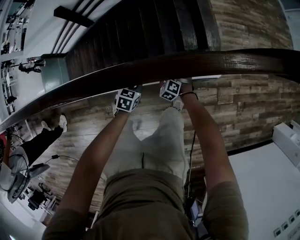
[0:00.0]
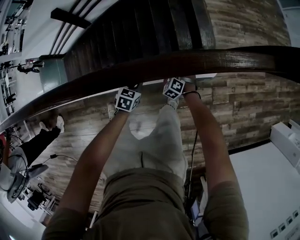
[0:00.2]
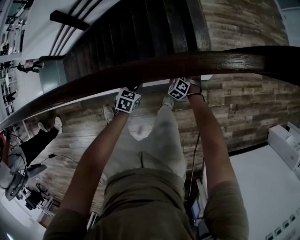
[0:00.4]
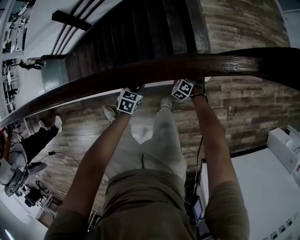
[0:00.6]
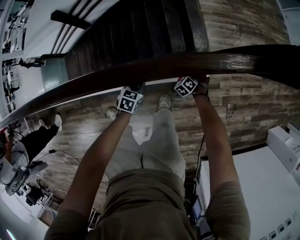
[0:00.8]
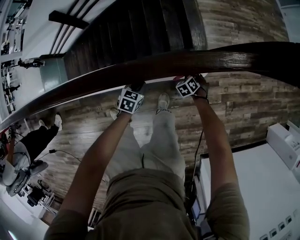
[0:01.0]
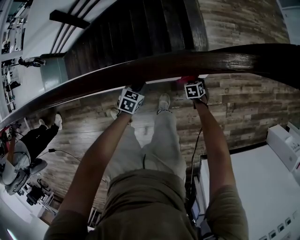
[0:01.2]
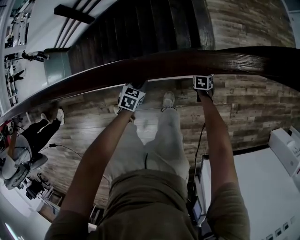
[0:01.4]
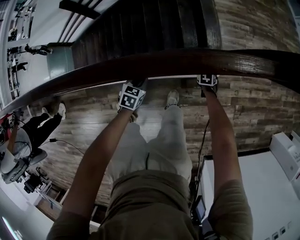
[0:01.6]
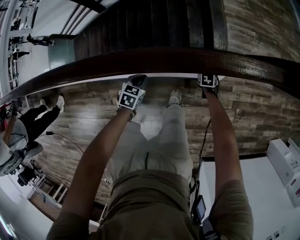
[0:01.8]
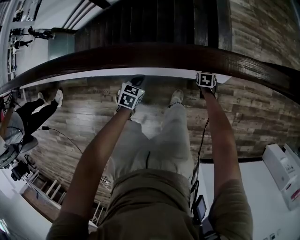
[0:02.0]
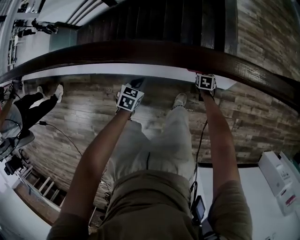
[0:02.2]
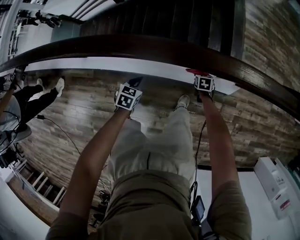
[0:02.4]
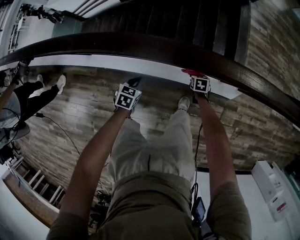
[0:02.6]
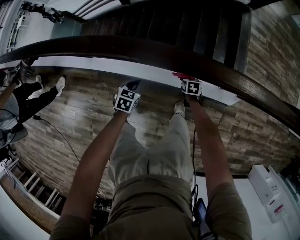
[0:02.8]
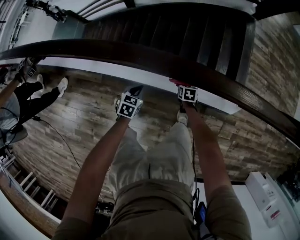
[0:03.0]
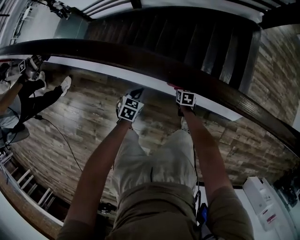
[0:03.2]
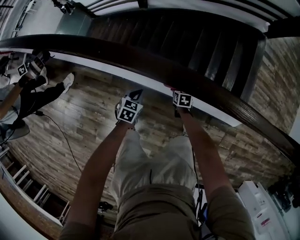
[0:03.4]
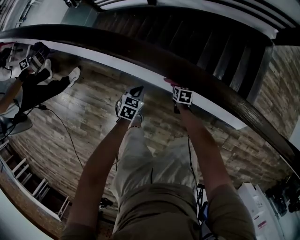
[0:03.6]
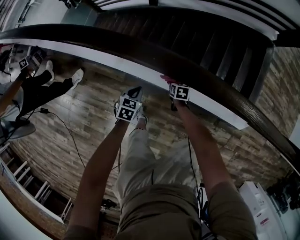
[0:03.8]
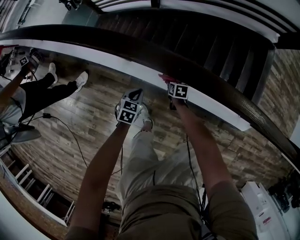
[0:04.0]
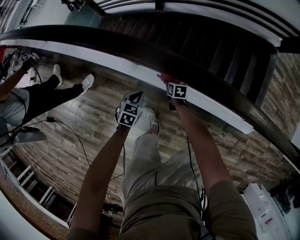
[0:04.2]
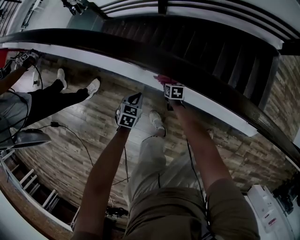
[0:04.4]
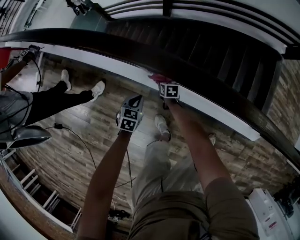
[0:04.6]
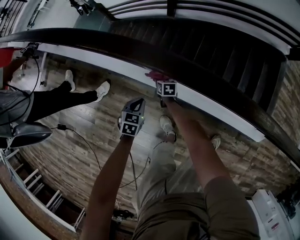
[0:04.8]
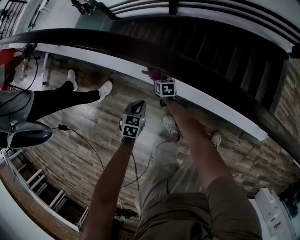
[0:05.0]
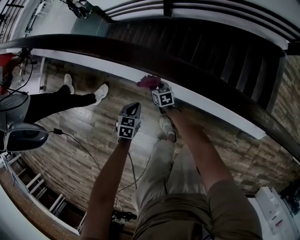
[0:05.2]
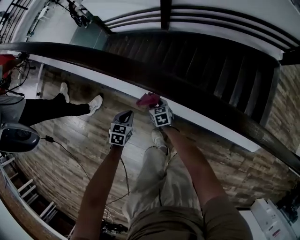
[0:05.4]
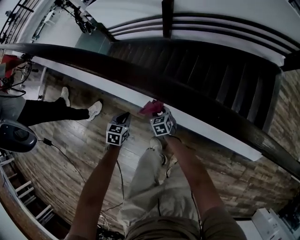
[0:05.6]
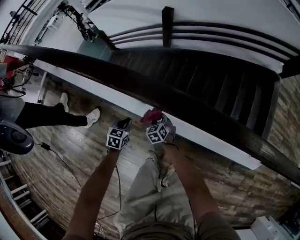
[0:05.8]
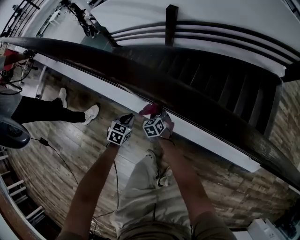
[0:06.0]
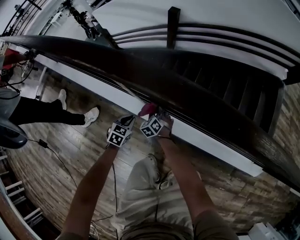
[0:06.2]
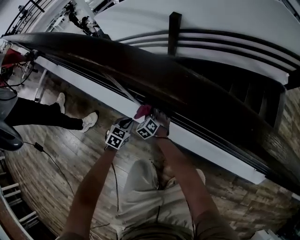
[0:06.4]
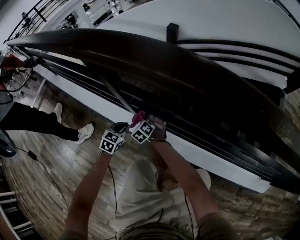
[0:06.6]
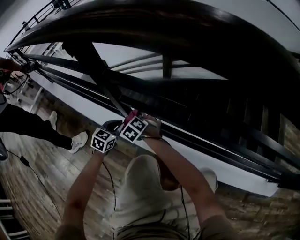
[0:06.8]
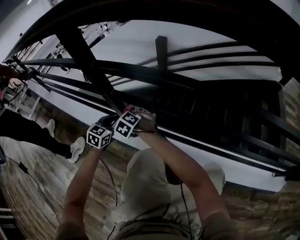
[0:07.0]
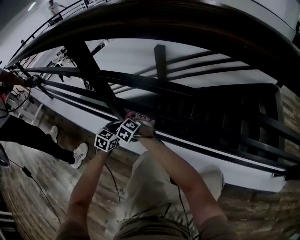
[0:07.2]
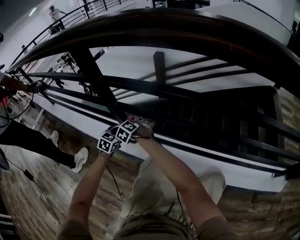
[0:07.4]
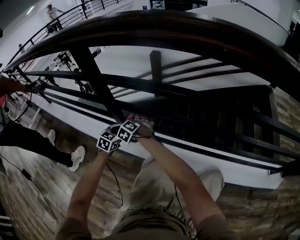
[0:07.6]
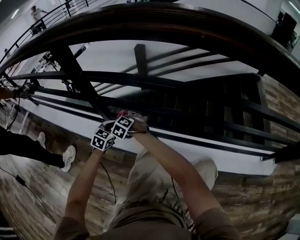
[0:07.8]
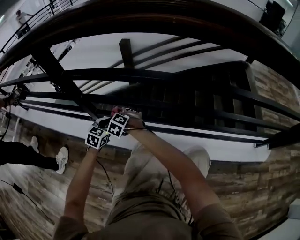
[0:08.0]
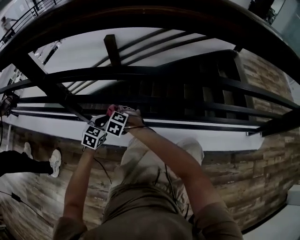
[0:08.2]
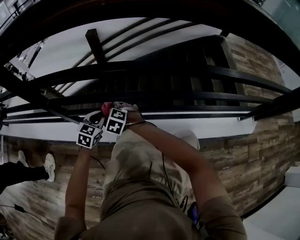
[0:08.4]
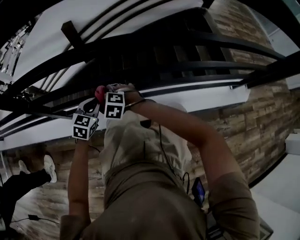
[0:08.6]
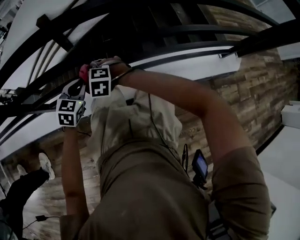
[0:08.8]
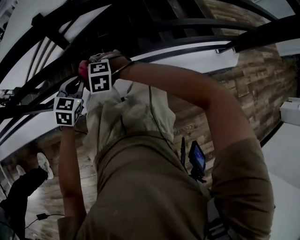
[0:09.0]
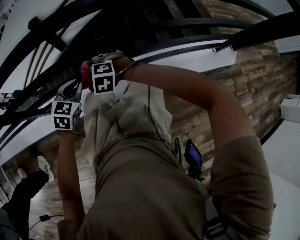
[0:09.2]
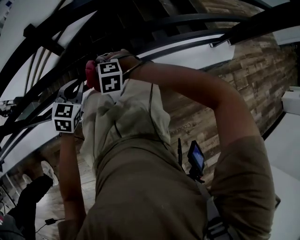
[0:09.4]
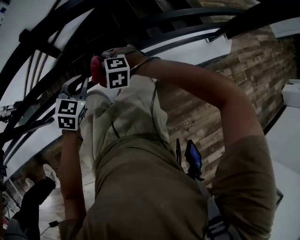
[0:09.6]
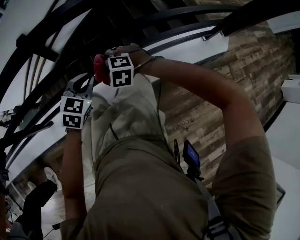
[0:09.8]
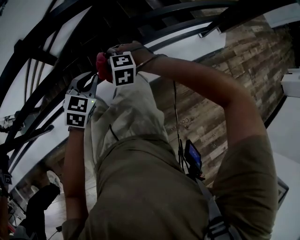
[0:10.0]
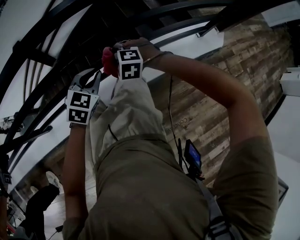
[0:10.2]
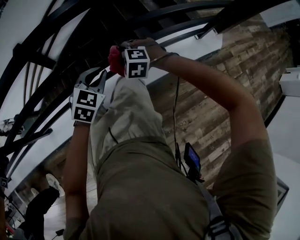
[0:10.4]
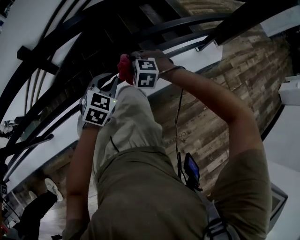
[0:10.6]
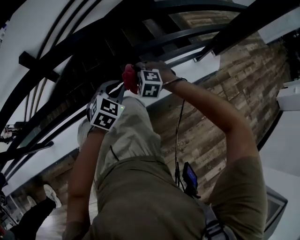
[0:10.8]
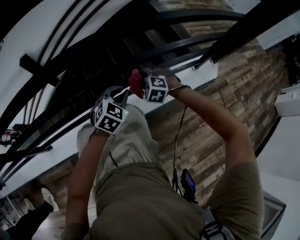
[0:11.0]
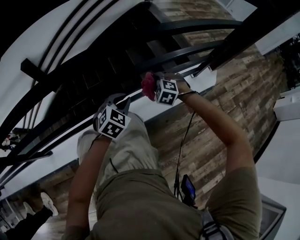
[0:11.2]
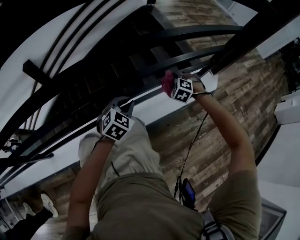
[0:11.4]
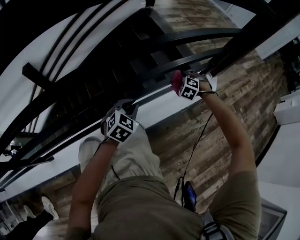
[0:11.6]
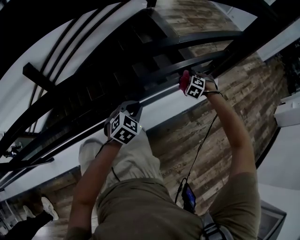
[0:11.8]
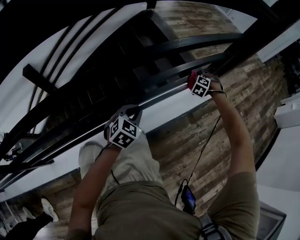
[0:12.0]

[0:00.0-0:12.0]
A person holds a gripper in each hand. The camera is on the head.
0:00.0 to 0:01.6: The left gripper heads to the right, covering roughly 10 cm. Meanwhile the right gripper travels to the right and forward by approximately 30 cm, and rotates around the line of its fingers by roughly 60 degrees, clockwise from behind.
0:01.6 to 0:03.0: The two grippers travel together, about 50 cm. The left gripper turns by some 20 degrees.
0:03.0 to 0:04.4: The two grippers travel together, to the left, about 60 cm.
0:04.4 to 0:06.0: The right gripper moves downward and to the left, approximately 10 cm, and rotates approximately 40 degrees; the left gripper goes some 10 cm downward.
0:06.0 to 0:07.6: The left gripper heads downward, covering about 15 cm, and rotates some 20 degrees. Meanwhile the right gripper heads downward and to the left, covering roughly 15 cm, and turns by some 30 degrees.
0:07.6 to 0:09.0: Both grippers move to the right, about 40 cm. The left gripper swivels about 30 degrees.
0:09.0 to 0:10.4: Both grippers travel together to the right, about 30 cm. The left gripper swivels about 20 degrees.
0:10.4 to 0:12.0: The left gripper changes place by approximately 15 cm, while the right gripper ends up some 50 cm from where it was, and swivels approximately 40 degrees.

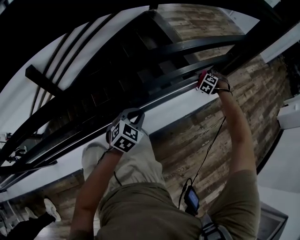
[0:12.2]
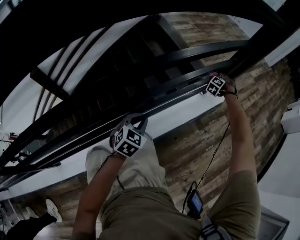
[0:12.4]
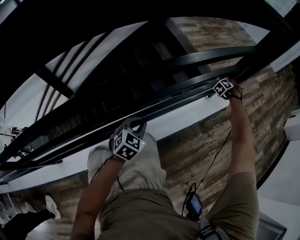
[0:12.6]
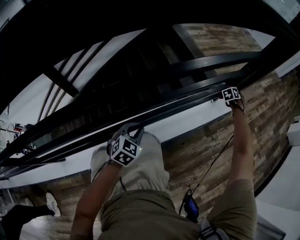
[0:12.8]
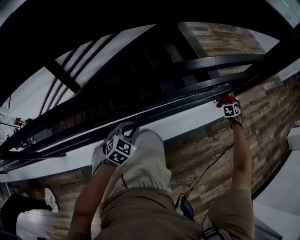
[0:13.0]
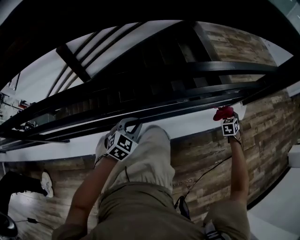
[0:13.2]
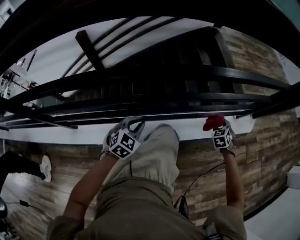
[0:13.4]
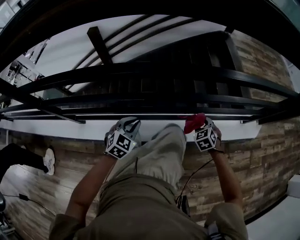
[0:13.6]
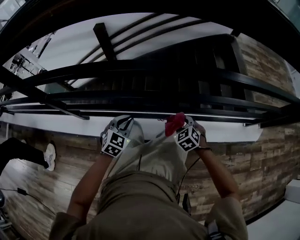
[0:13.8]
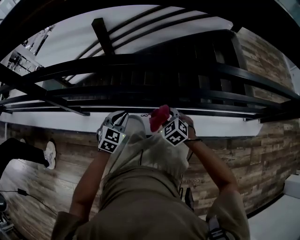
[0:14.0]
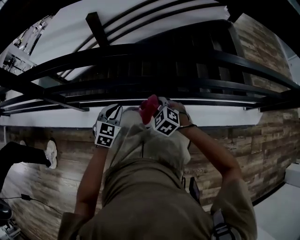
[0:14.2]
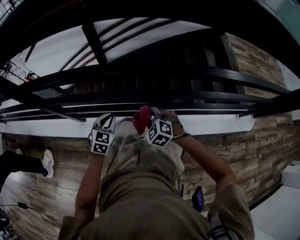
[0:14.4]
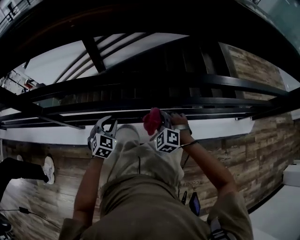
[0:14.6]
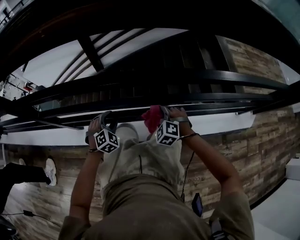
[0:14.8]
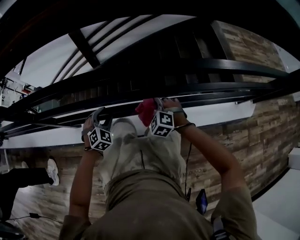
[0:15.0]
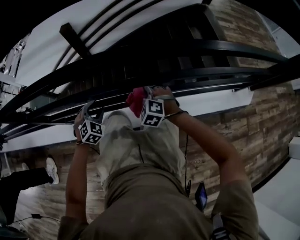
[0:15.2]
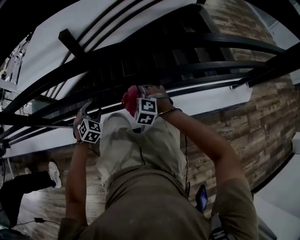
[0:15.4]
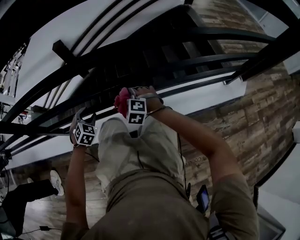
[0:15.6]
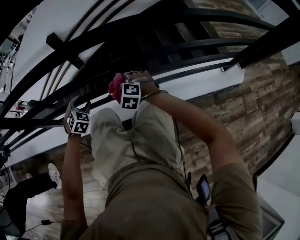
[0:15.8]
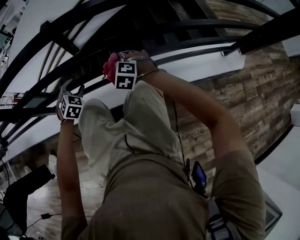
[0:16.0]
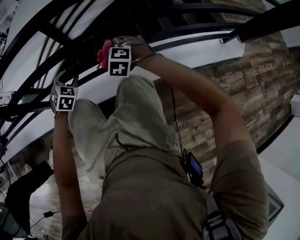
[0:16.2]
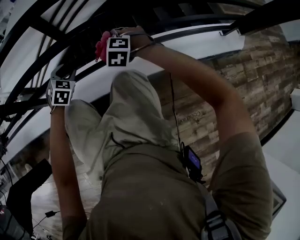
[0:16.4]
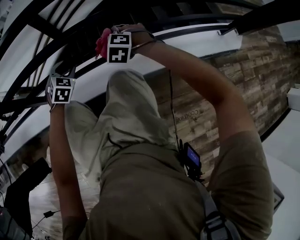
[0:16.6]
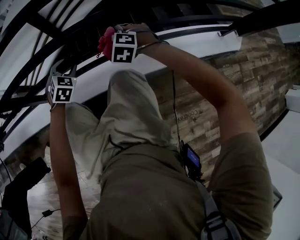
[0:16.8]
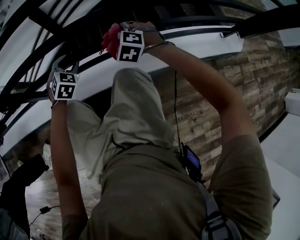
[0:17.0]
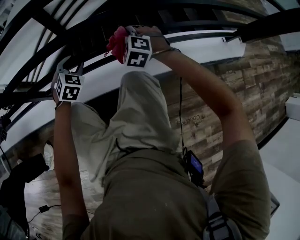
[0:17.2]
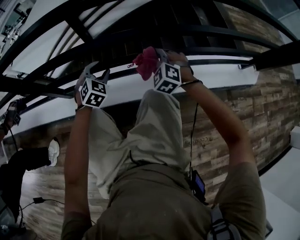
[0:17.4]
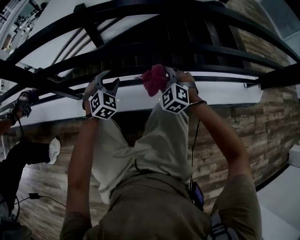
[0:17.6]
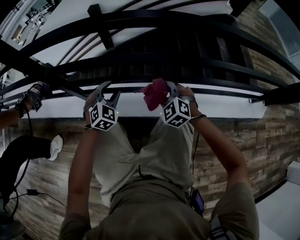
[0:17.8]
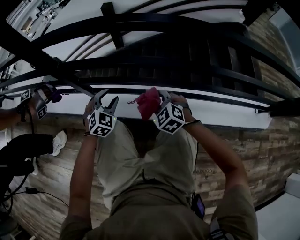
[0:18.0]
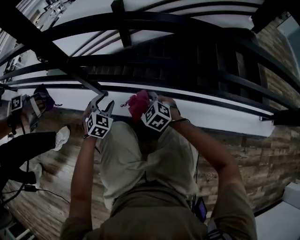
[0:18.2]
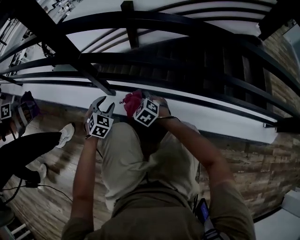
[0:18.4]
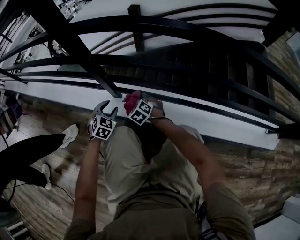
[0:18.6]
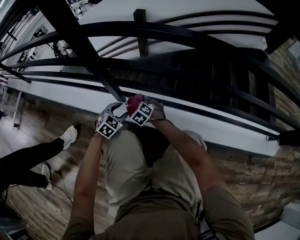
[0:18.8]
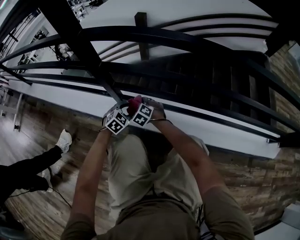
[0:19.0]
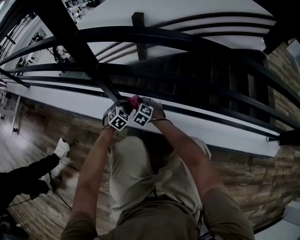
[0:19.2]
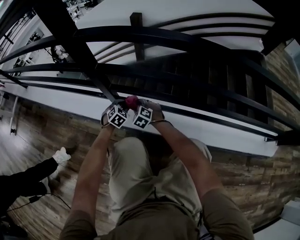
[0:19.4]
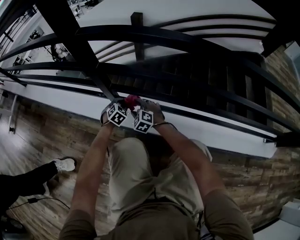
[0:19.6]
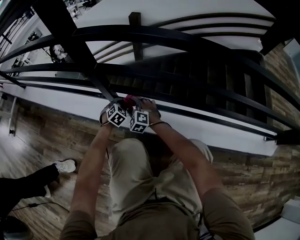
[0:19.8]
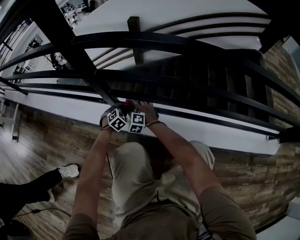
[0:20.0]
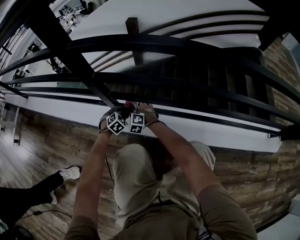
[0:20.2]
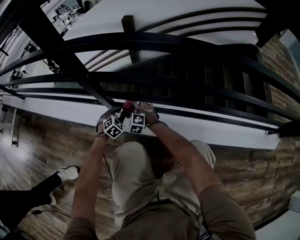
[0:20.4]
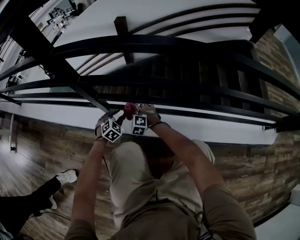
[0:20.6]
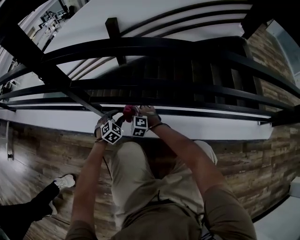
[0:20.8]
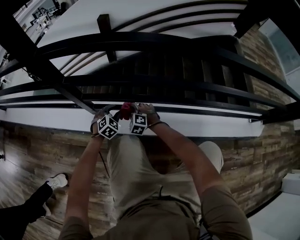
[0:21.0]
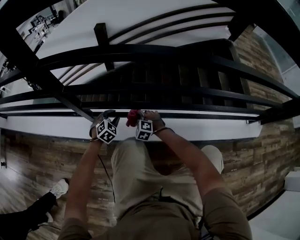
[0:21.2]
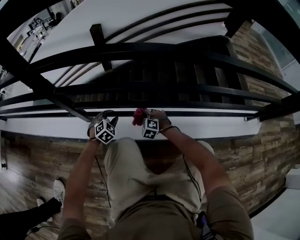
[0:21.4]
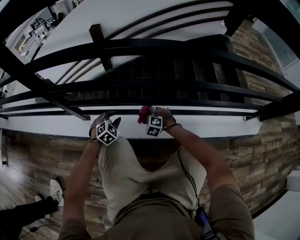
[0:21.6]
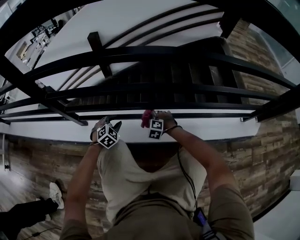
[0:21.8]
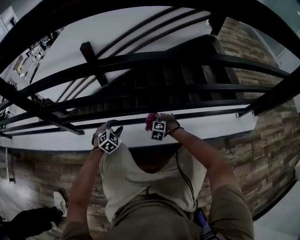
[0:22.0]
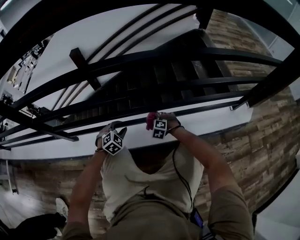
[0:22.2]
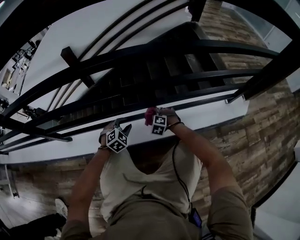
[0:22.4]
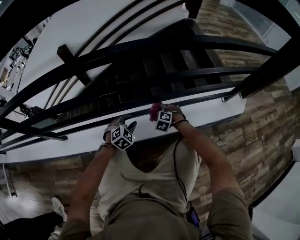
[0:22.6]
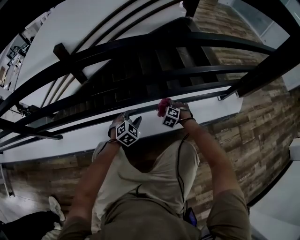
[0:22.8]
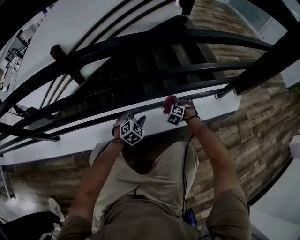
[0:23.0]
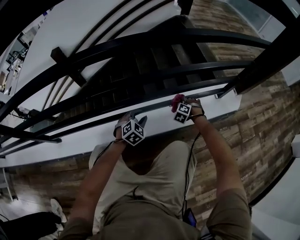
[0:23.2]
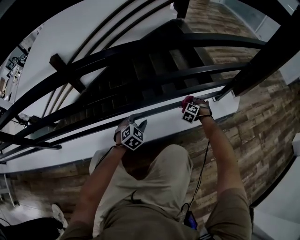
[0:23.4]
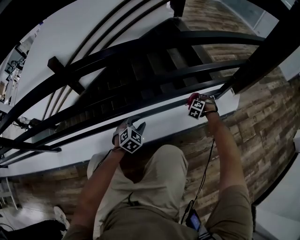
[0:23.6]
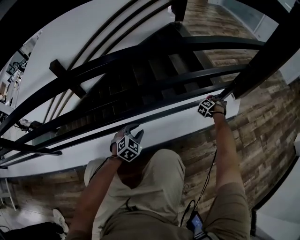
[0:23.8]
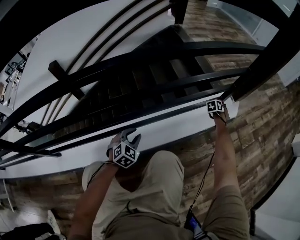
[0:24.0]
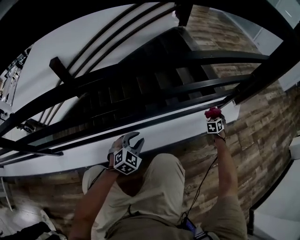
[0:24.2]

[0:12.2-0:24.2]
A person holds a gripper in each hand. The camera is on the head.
0:12.2 to 0:13.8: The left gripper shifts by approximately 40 cm, and swivels some 30 degrees; the right gripper moves approximately 60 cm, and swivels approximately 50 degrees.
0:13.8 to 0:15.2: The two grippers go about 10 cm to the left and forward. The right gripper rotates approximately 20 degrees; the left gripper turns by roughly 20 degrees, and opens.
0:15.2 to 0:16.6: The grippers move only a little.
0:16.6 to 0:18.2: The left gripper changes place by about 25 cm, while the right gripper shifts by roughly 30 cm, and turns by about 30 degrees.
0:18.2 to 0:19.8: The left gripper heads downward and forward, covering some 15 cm, and closes its fingers; the right gripper heads to the left, forward and downward, covering about 20 cm, rotates some 20 degrees, and opens up.
0:19.8 to 0:21.2: The left gripper moves to the right, roughly 10 cm. Meanwhile the right gripper travels to the right by approximately 20 cm, and closes.
0:21.2 to 0:22.6: The pair of grippers is taken to the right, about 50 cm. The right gripper swivels about 20 degrees. Meanwhile the left gripper turns by about 20 degrees.
0:22.6 to 0:24.2: The left gripper is displaced upward by some 10 cm, while the right gripper moves approximately 40 cm, and rotates about 70 degrees.
